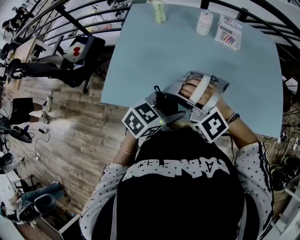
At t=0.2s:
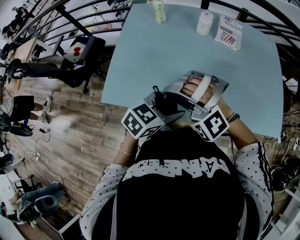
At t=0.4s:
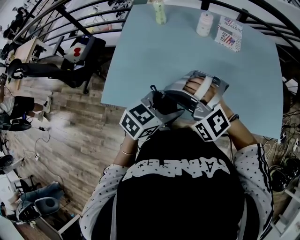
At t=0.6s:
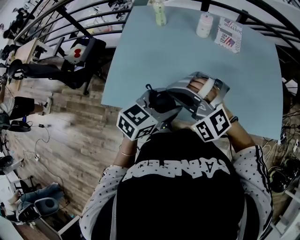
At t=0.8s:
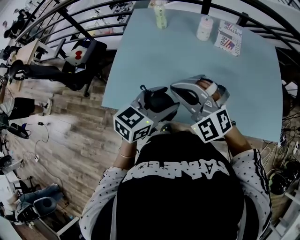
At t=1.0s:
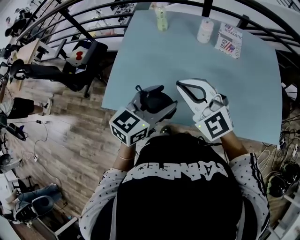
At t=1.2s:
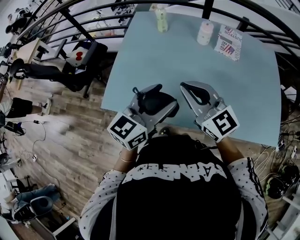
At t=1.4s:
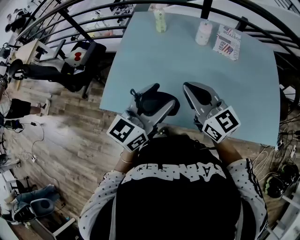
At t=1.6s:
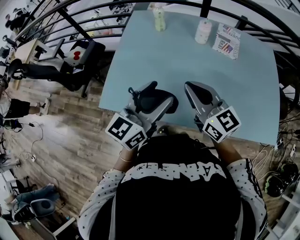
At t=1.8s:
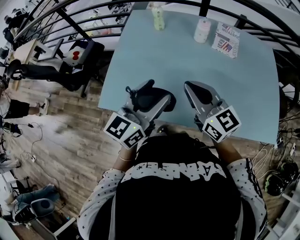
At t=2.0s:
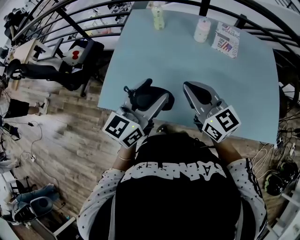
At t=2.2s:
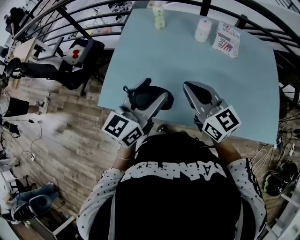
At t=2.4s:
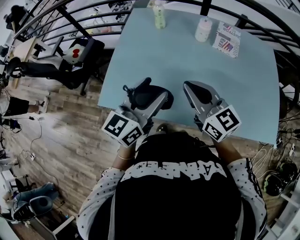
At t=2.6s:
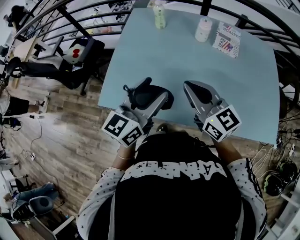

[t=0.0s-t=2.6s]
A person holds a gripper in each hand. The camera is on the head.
t=0.0s to t=1.2s: The right gripper is displaced to the right and forward by roughly 10 cm, and twists some 80 degrees clockwise, seen from behind. The left gripper travels upward by approximately 10 cm, and turns by about 40 degrees.
t=1.2s to t=2.6s: There are only small adjustments of the grippers.

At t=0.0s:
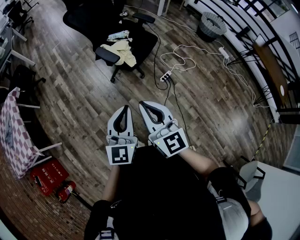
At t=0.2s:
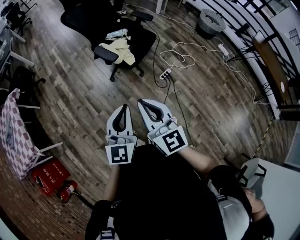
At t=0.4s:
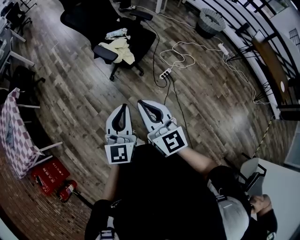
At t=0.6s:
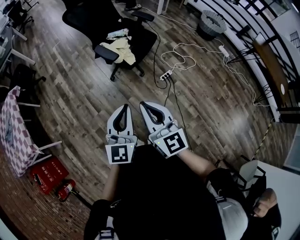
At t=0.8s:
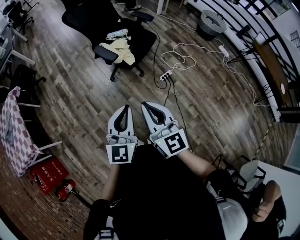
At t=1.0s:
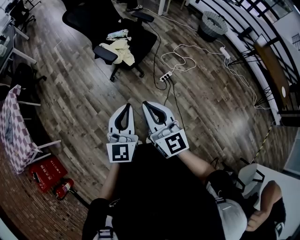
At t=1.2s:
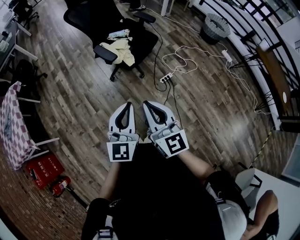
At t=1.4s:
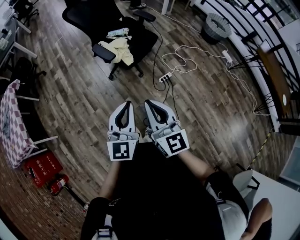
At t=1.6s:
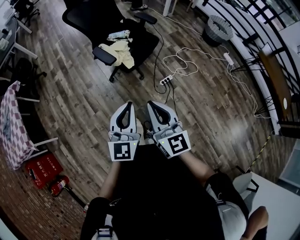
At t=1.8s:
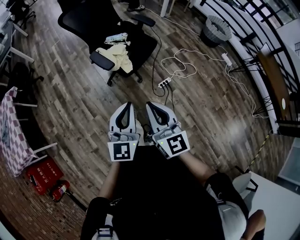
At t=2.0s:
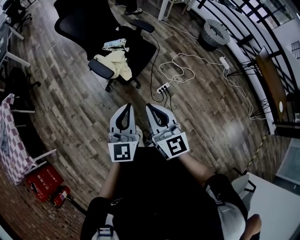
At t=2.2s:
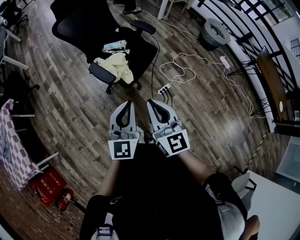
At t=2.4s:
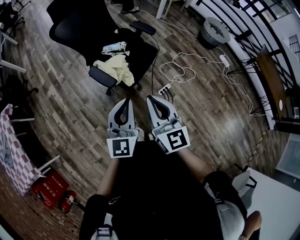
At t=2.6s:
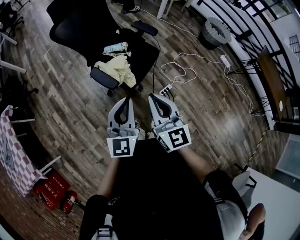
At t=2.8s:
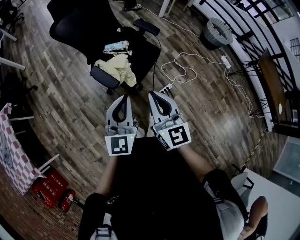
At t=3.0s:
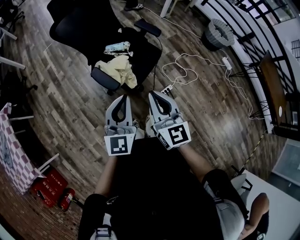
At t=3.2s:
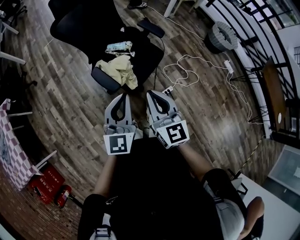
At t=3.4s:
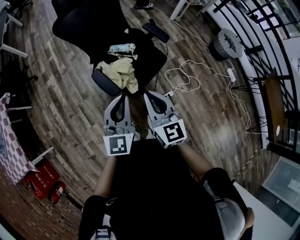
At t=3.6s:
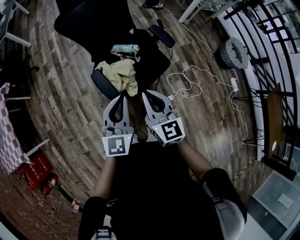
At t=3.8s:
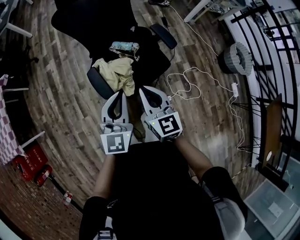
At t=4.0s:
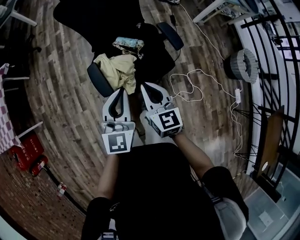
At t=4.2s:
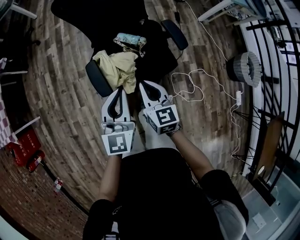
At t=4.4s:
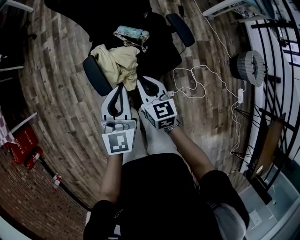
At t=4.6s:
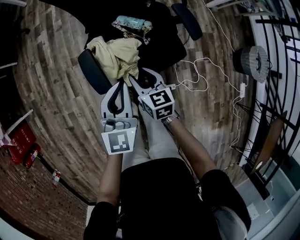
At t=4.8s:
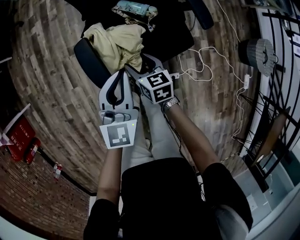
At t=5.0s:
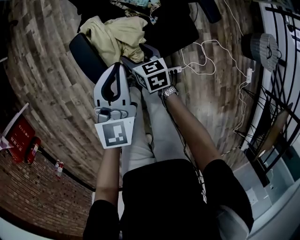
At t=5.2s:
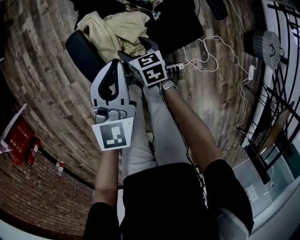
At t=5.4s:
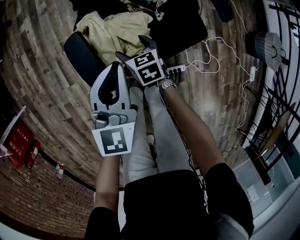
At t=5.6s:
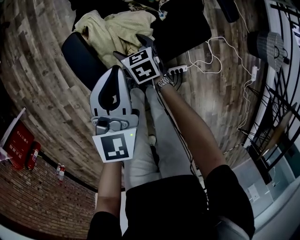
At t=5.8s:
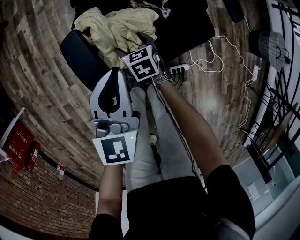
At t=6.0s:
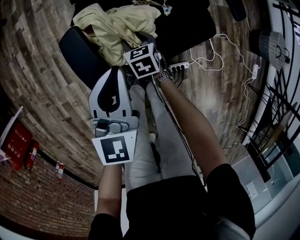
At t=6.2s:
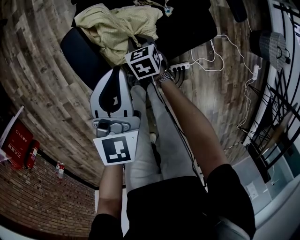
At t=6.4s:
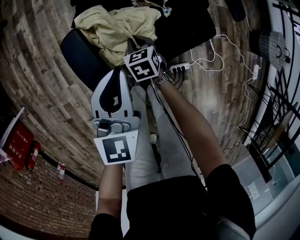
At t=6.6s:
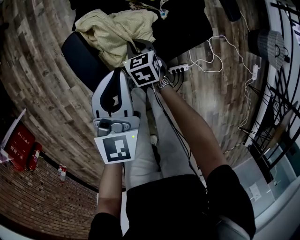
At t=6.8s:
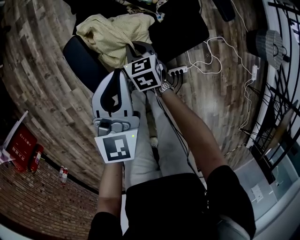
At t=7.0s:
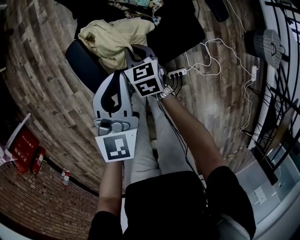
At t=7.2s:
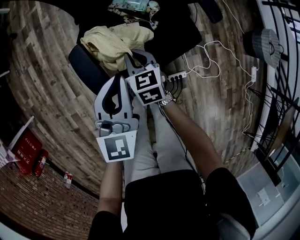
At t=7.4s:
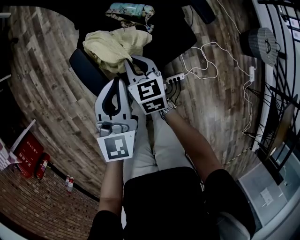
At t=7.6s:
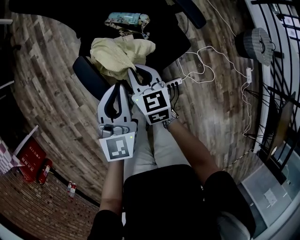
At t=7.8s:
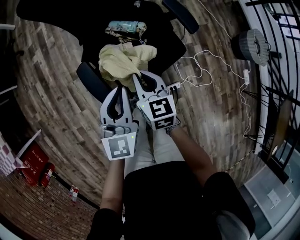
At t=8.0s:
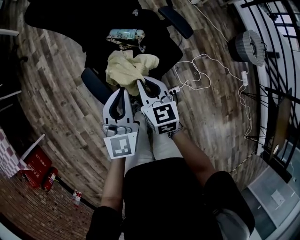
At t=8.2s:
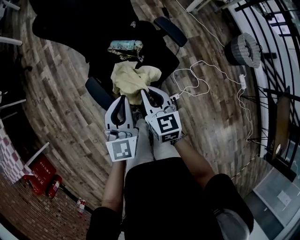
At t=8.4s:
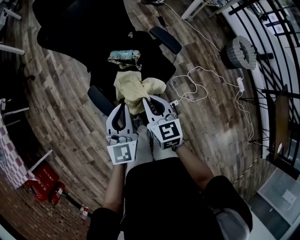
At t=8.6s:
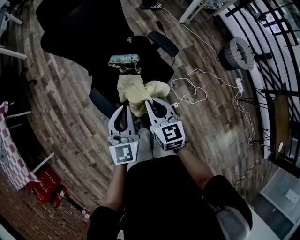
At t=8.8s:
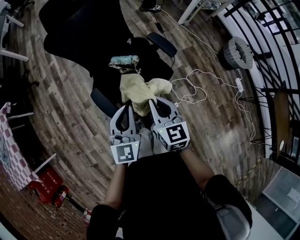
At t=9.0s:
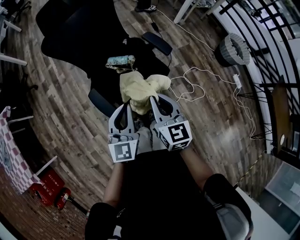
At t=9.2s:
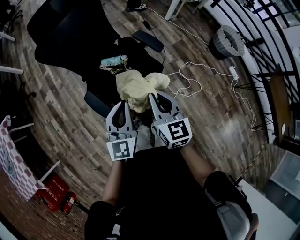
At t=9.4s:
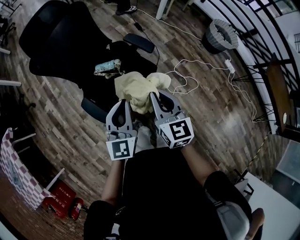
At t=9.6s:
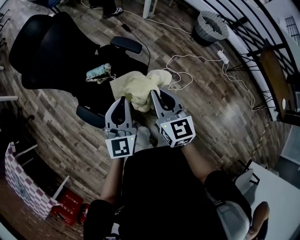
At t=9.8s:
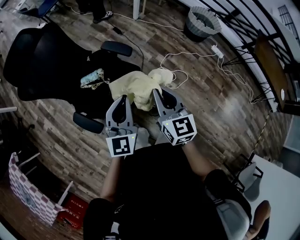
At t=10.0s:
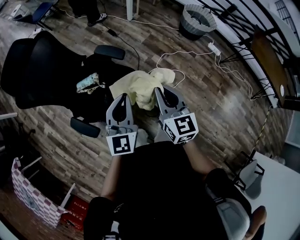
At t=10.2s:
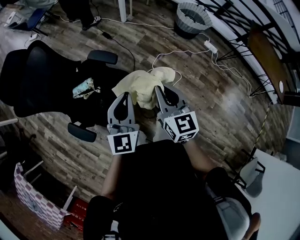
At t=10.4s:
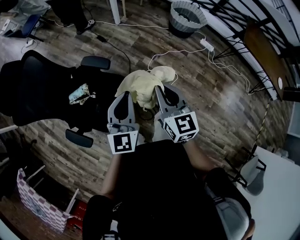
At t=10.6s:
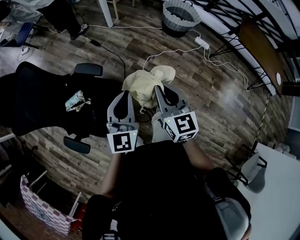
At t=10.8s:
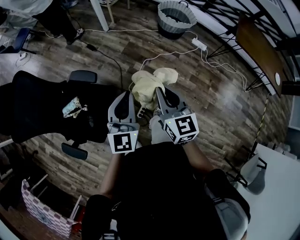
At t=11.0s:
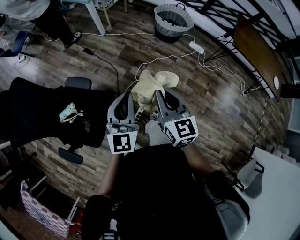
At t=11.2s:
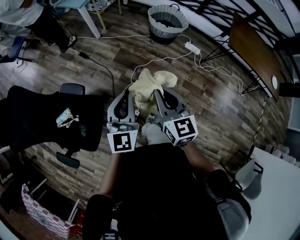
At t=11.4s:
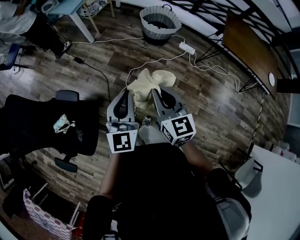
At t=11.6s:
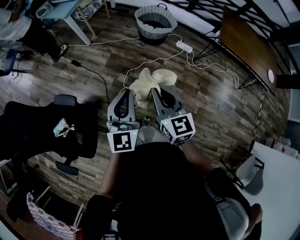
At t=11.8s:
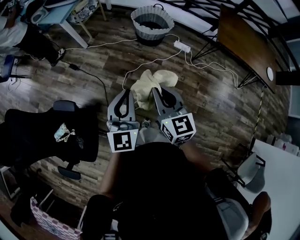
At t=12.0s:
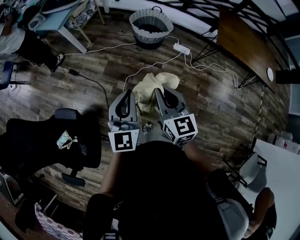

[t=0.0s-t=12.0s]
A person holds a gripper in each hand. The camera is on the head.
t=0.0s to t=1.6s: The two grippers go some 10 cm to the right.
t=1.6s to t=3.0s: Both grippers move forward, some 25 cm.
t=3.0s to t=4.4s: The left gripper moves some 25 cm, and rotates about 30 degrees. The right gripper travels downward by approximately 25 cm, and changes its angle by some 40 degrees.
t=4.4s to t=6.0s: The left gripper travels downward by roughly 20 cm. Meanwhile the right gripper is displaced downward by approximately 35 cm, rotates approximately 30 degrees, and opens its fingers.
t=6.0s to t=7.6s: The right gripper is displaced upward by roughly 25 cm, changes its angle by roughly 20 degrees, and closes up. Meanwhile the left gripper goes approximately 10 cm upward.
t=7.6s to t=9.0s: The left gripper travels upward by roughly 15 cm, while the right gripper travels upward and to the right by approximately 25 cm, and rotates about 20 degrees.
t=9.0s to t=10.4s: The right gripper ends up approximately 30 cm from where it was, and rotates about 30 degrees; the left gripper moves about 30 cm, and rotates some 30 degrees.
t=10.4s to t=12.0s: The two grippers go about 35 cm to the right and forward.

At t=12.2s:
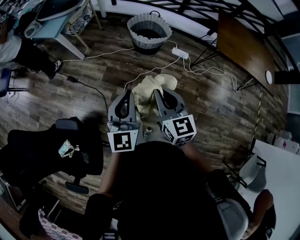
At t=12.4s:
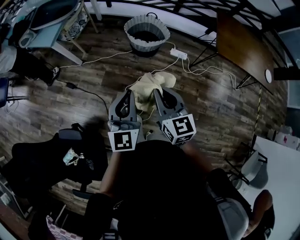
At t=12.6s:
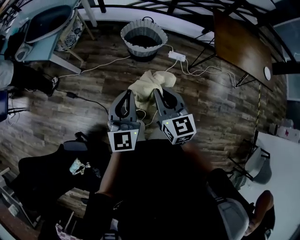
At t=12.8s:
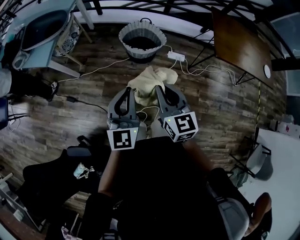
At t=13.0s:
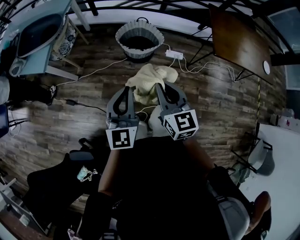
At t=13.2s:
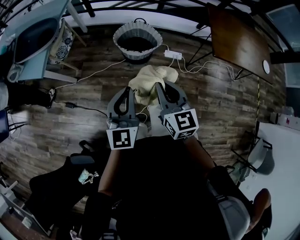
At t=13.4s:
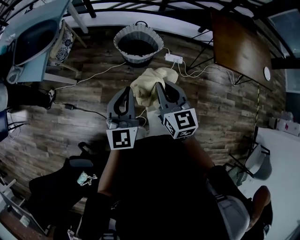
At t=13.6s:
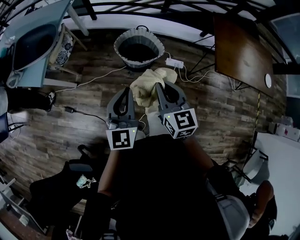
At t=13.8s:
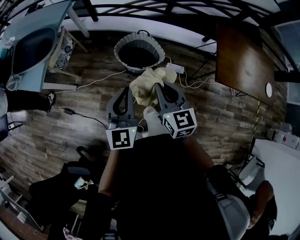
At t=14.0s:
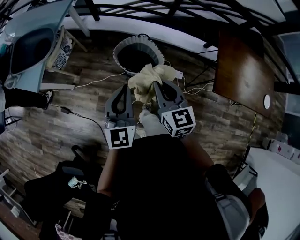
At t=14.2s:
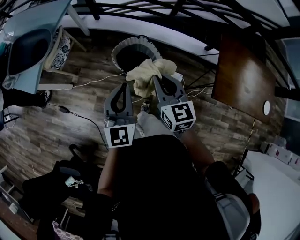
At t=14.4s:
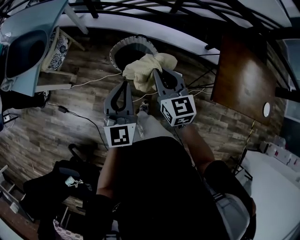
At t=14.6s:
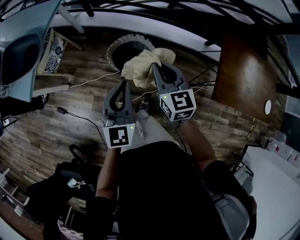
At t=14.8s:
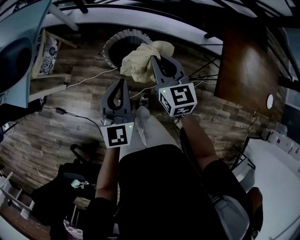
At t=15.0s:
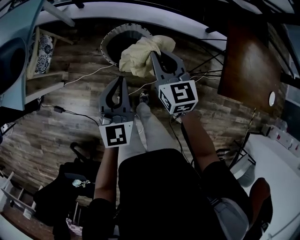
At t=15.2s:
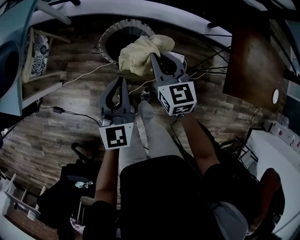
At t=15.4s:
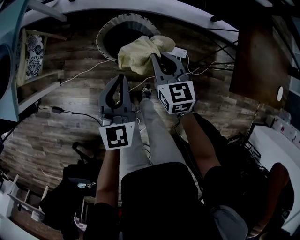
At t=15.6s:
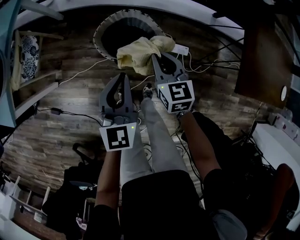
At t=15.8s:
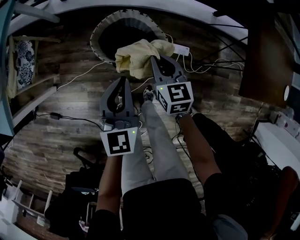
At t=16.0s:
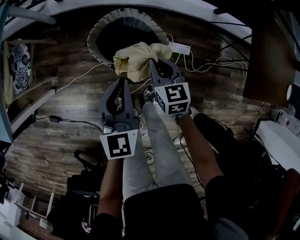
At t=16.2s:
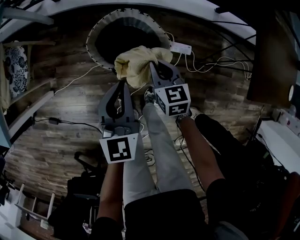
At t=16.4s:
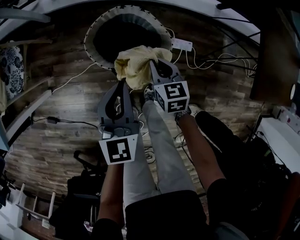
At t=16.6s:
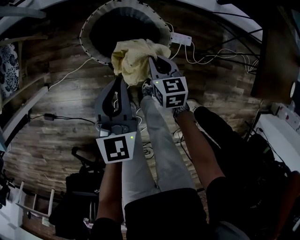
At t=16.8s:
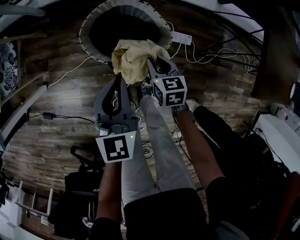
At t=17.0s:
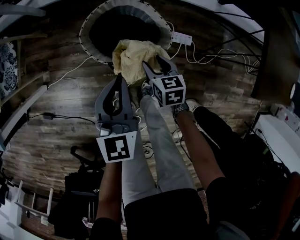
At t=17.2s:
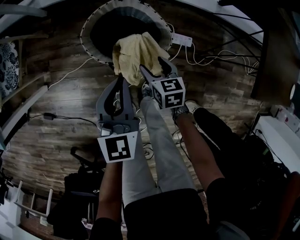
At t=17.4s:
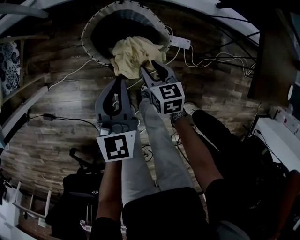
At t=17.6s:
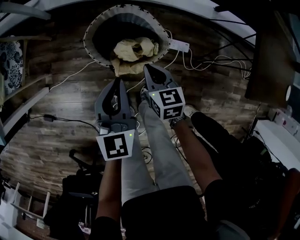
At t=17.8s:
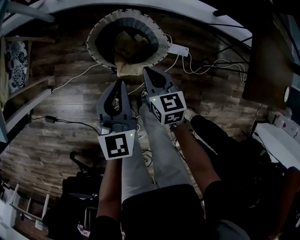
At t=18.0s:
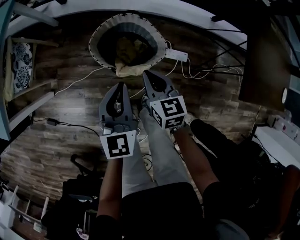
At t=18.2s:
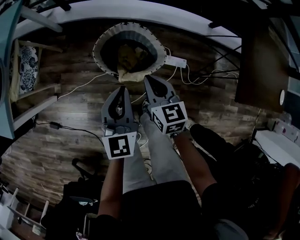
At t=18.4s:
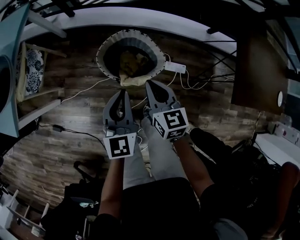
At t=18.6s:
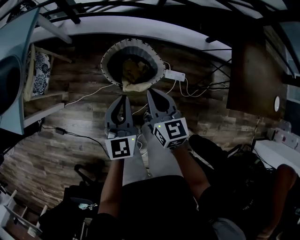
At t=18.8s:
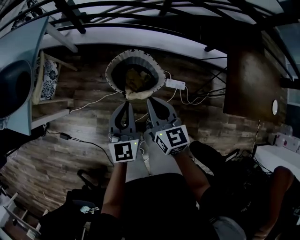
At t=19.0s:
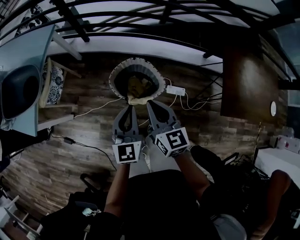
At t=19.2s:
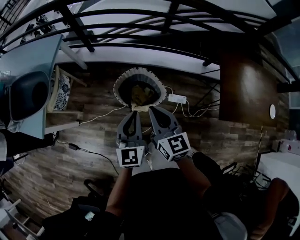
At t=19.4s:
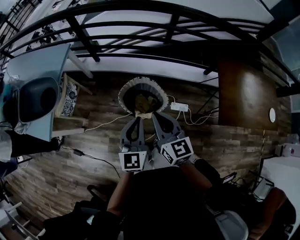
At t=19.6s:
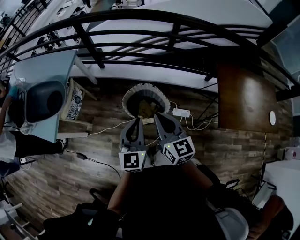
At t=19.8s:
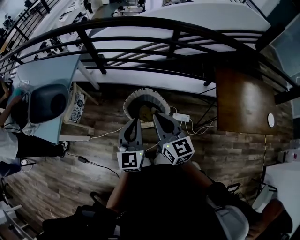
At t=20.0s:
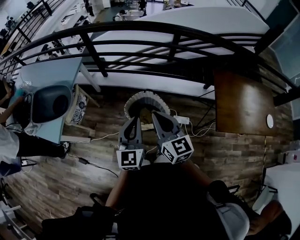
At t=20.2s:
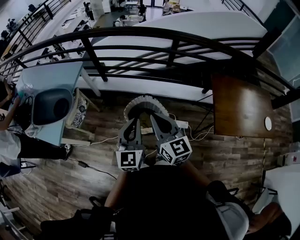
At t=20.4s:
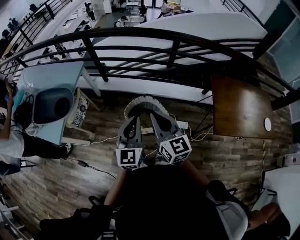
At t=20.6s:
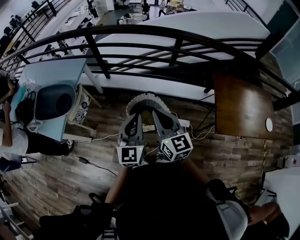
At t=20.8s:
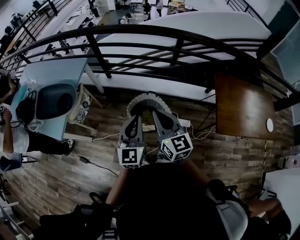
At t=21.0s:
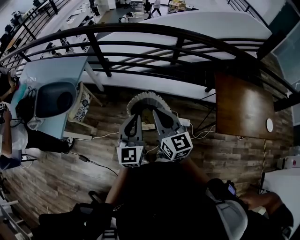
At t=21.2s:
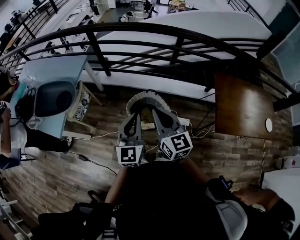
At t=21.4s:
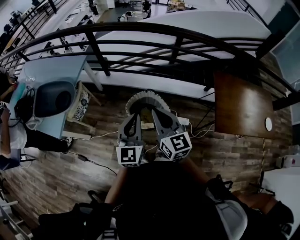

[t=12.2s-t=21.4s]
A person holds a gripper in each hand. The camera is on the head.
t=12.2s to t=13.8s: Both grippers move forward, approximately 35 cm.
t=13.8s to t=15.2s: Both grippers move forward and downward, approximately 25 cm.
t=15.2s to t=16.8s: The left gripper travels downward by roughly 20 cm, while the right gripper heads downward, covering approximately 35 cm, and turns by approximately 30 degrees.
t=16.8s to t=18.4s: The right gripper heads upward, covering roughly 25 cm, turns by some 20 degrees, and opens and closes again, while the left gripper heads upward, covering about 10 cm.
t=18.4s to t=19.8s: Both grippers travel together upward, roughly 25 cm. The right gripper swivels about 20 degrees.
t=19.8s to t=21.4s: There are only small adjustments of the grippers.
